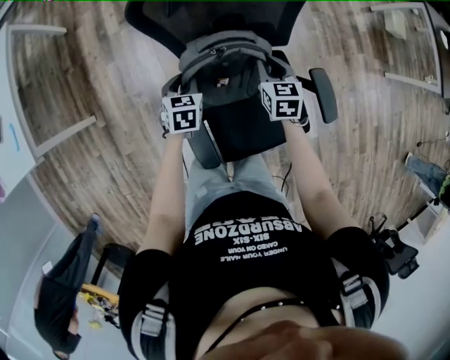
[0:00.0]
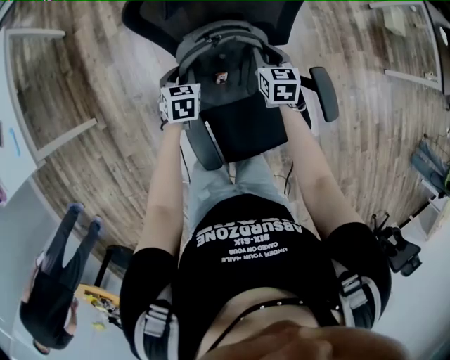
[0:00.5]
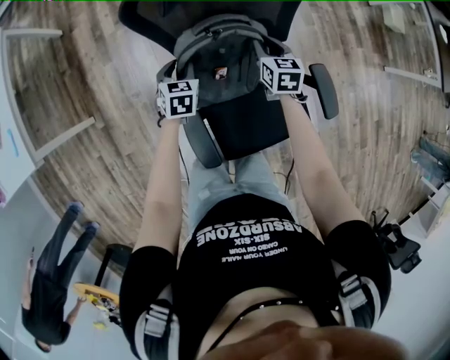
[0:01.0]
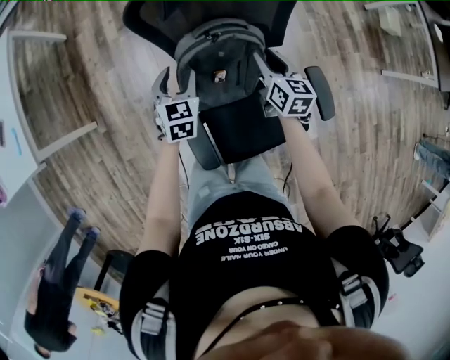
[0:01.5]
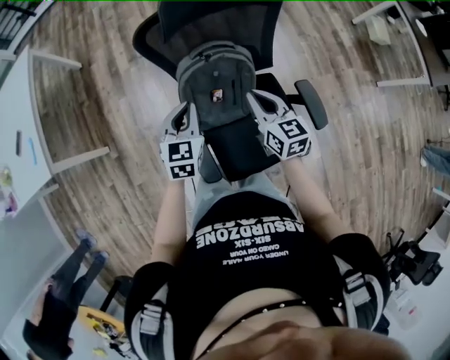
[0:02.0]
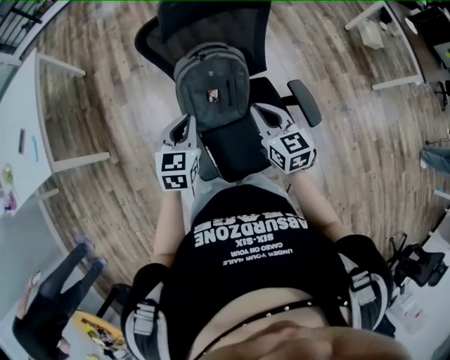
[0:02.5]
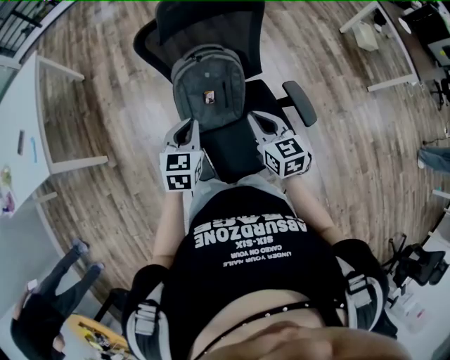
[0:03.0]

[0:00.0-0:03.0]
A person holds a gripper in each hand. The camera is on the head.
0:00.0 to 0:01.5: The right gripper turns by approximately 20 degrees, and opens, while the left gripper travels upward by some 5 cm, and opens up.
0:01.5 to 0:03.0: The two grippers go roughly 25 cm backward and upward. The right gripper closes its fingers. The left gripper closes its fingers.

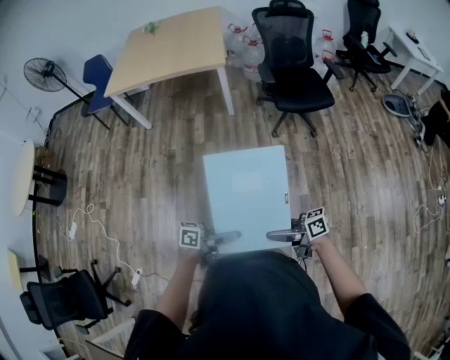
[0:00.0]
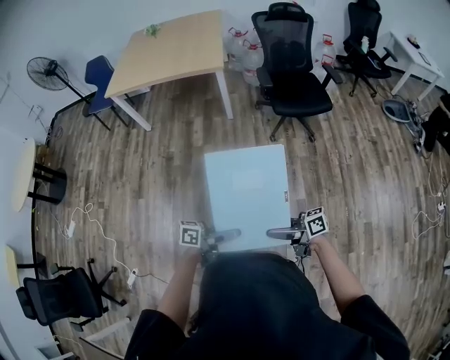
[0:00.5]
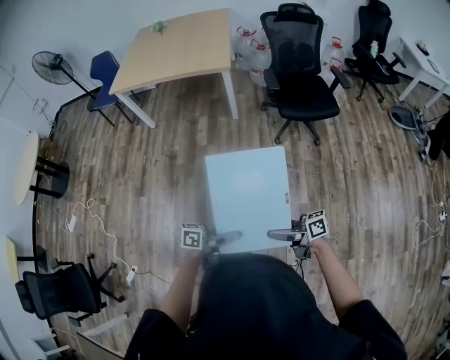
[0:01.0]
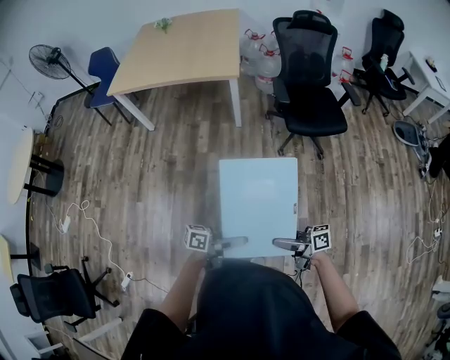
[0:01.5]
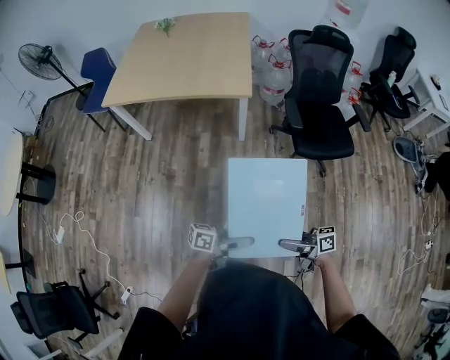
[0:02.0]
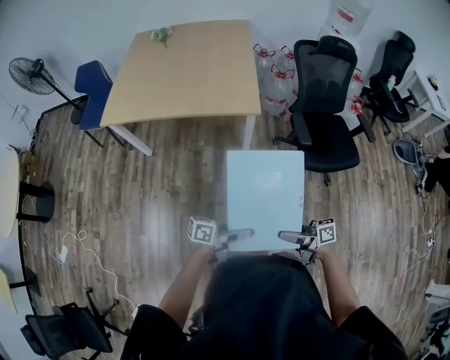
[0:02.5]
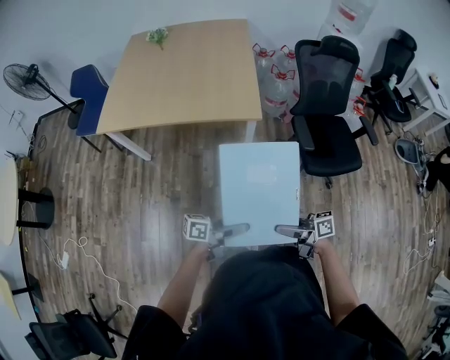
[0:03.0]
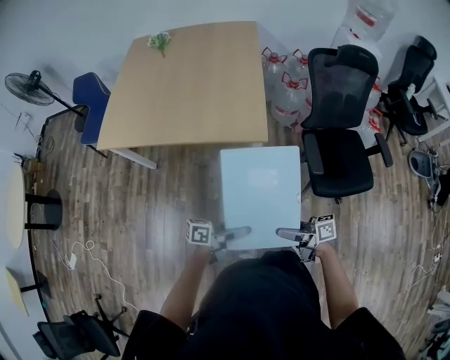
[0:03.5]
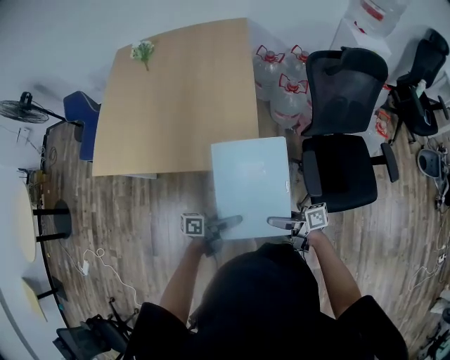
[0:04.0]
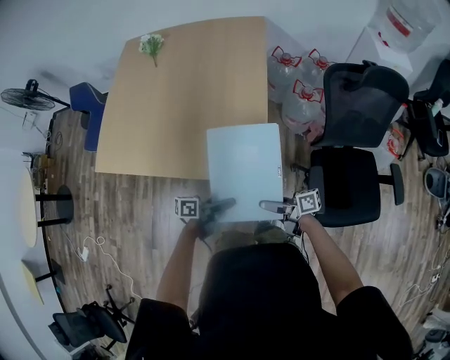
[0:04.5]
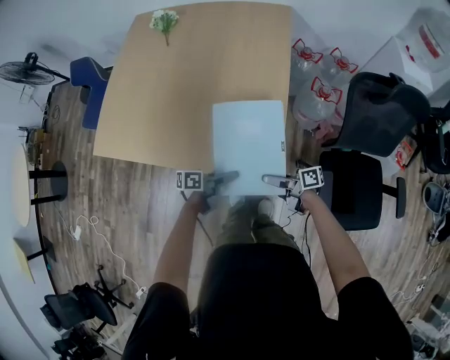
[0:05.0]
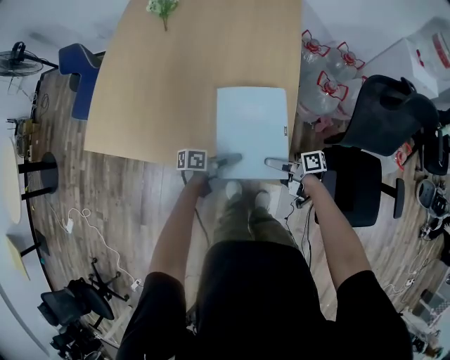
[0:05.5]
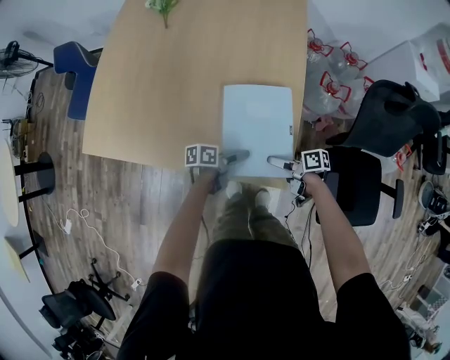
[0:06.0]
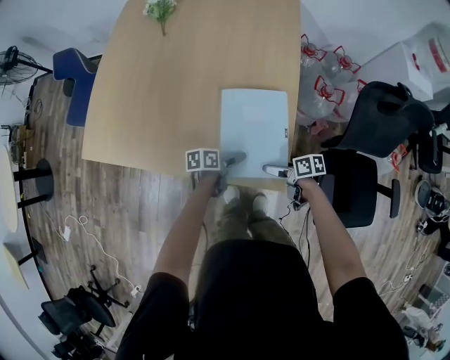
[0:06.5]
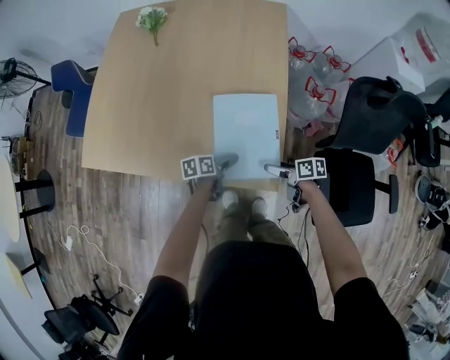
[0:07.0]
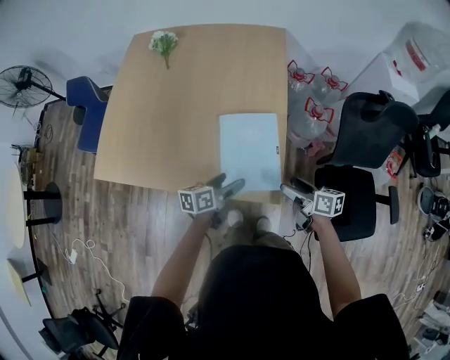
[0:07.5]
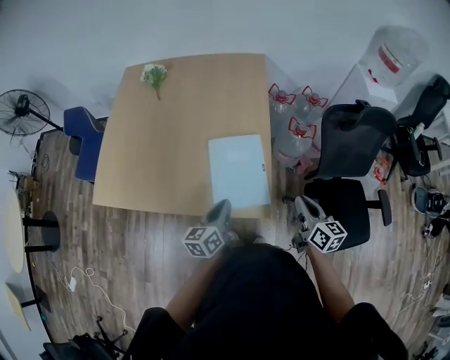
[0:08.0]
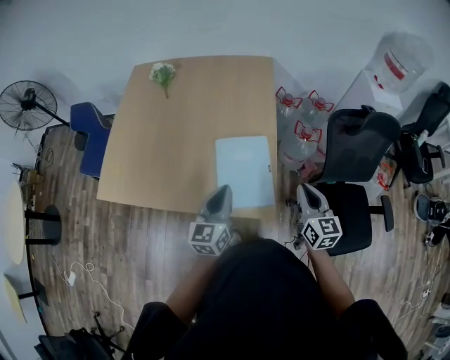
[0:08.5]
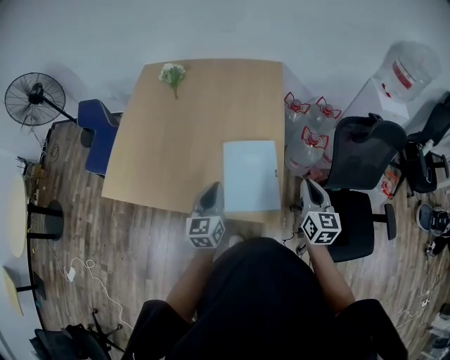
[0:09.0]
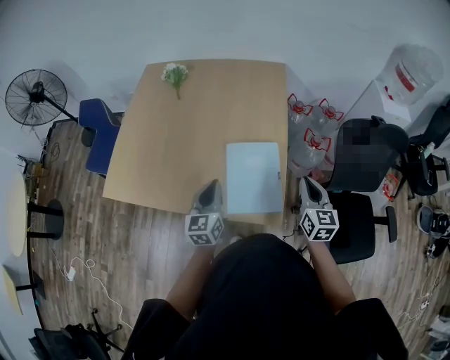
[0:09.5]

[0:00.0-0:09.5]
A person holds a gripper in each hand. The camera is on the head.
0:00.0 to 0:02.0: The right gripper ends up roughly 35 cm from where it was, while the left gripper moves roughly 35 cm.
0:02.0 to 0:04.0: Both grippers are carried roughly 60 cm.
0:04.0 to 0:05.5: The left gripper shifts by approximately 35 cm; the right gripper shifts by approximately 40 cm.
0:05.5 to 0:07.5: The two grippers go roughly 15 cm upward. The left gripper turns by some 30 degrees. The right gripper rotates some 30 degrees.
0:07.5 to 0:09.5: The left gripper heads upward and to the left, covering roughly 15 cm, rotates about 50 degrees, and closes; the right gripper moves upward, some 15 cm, changes its angle by approximately 50 degrees, and closes its fingers.

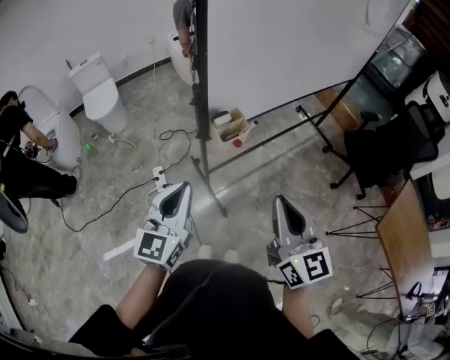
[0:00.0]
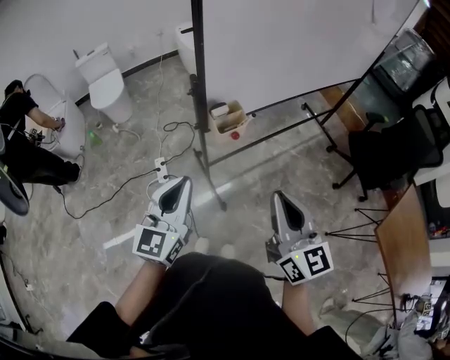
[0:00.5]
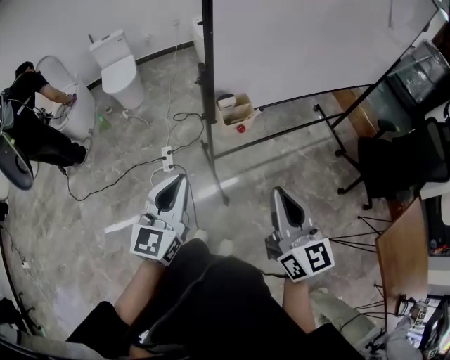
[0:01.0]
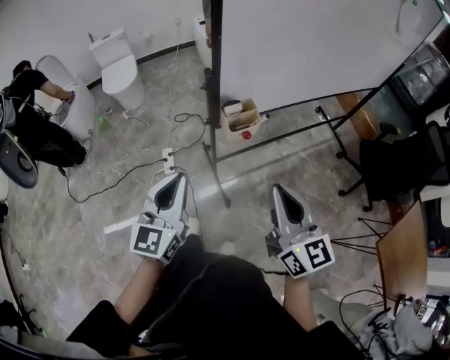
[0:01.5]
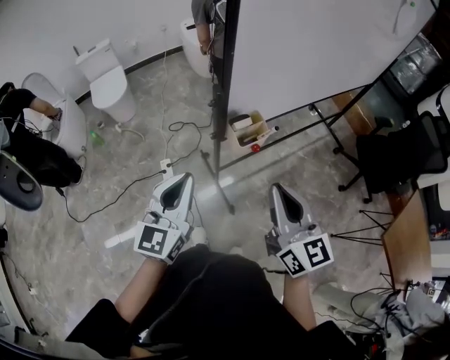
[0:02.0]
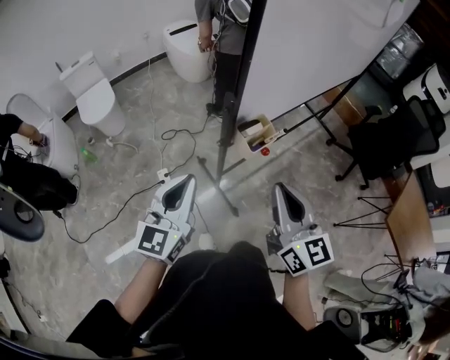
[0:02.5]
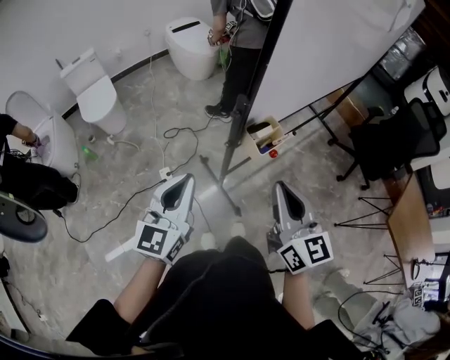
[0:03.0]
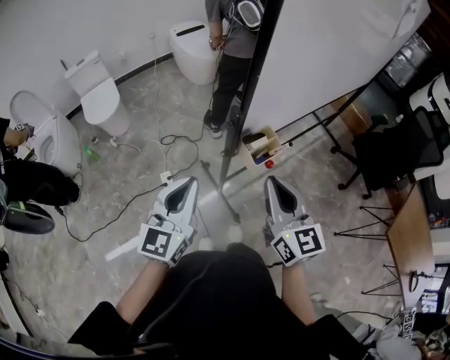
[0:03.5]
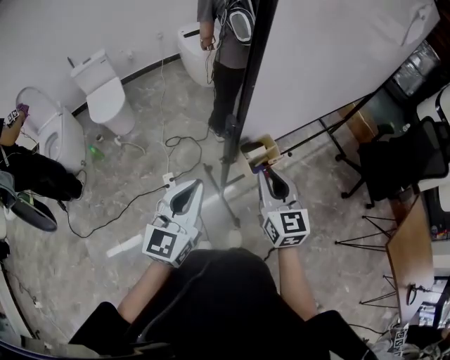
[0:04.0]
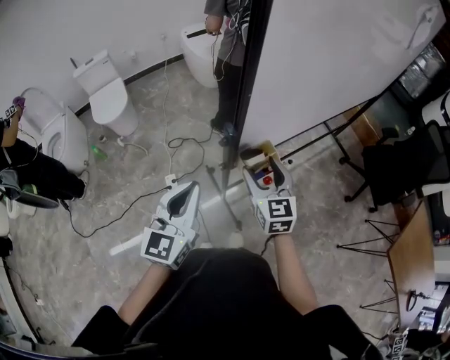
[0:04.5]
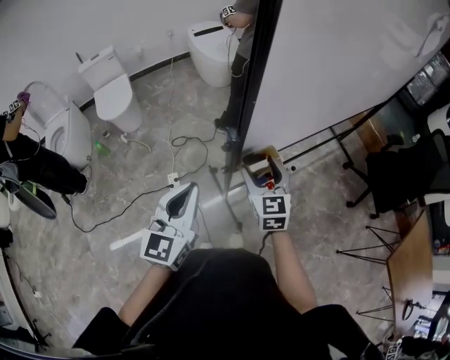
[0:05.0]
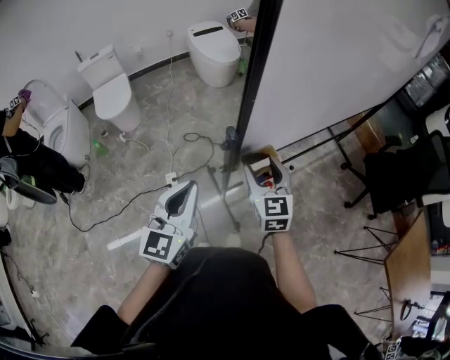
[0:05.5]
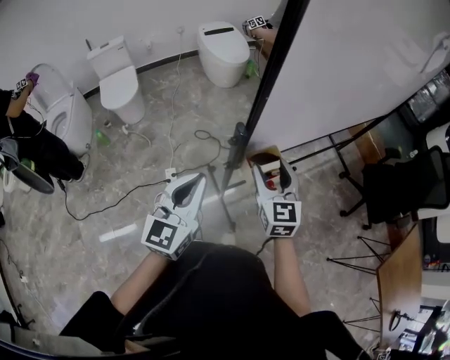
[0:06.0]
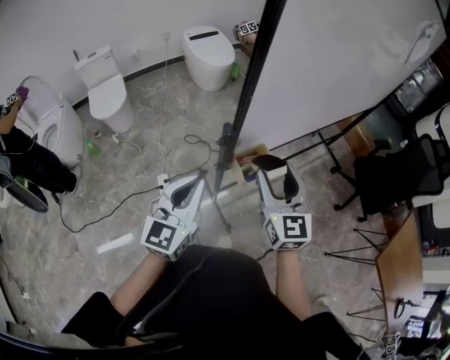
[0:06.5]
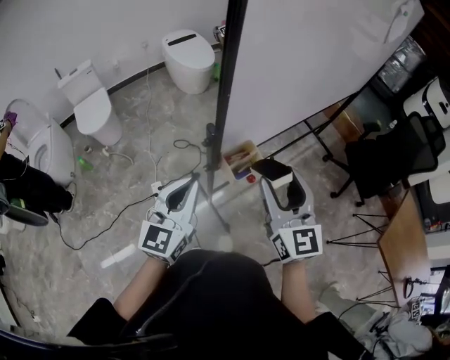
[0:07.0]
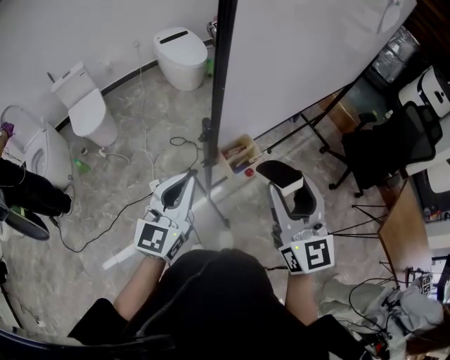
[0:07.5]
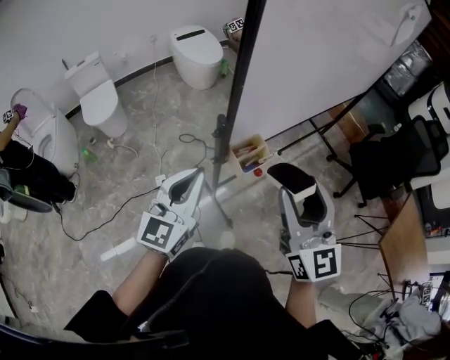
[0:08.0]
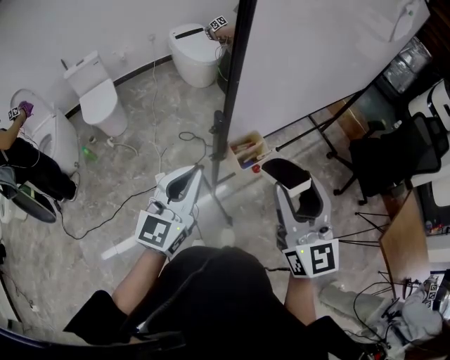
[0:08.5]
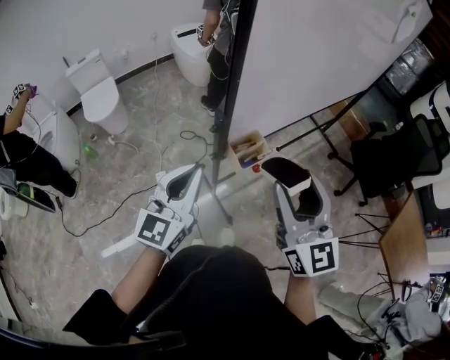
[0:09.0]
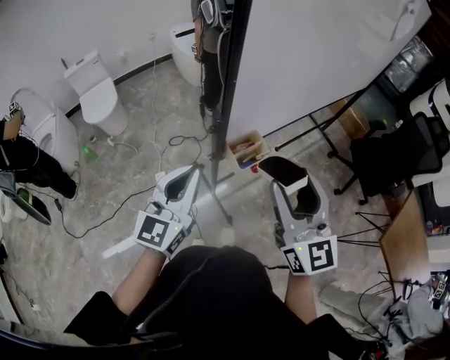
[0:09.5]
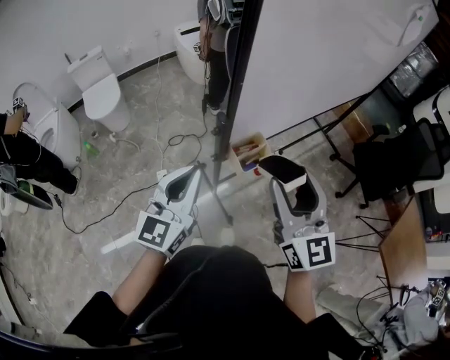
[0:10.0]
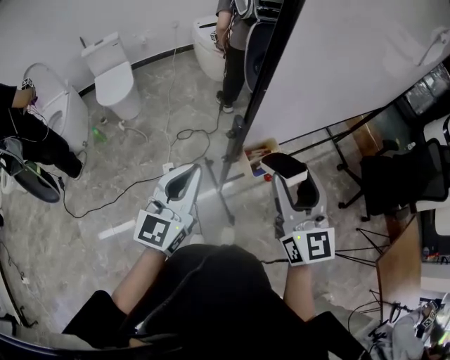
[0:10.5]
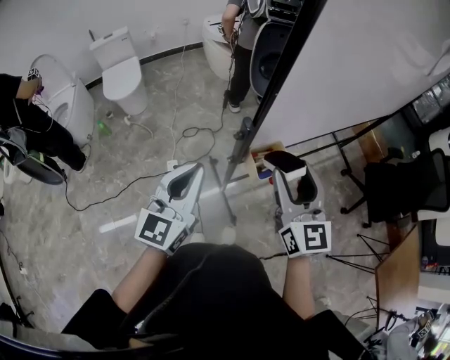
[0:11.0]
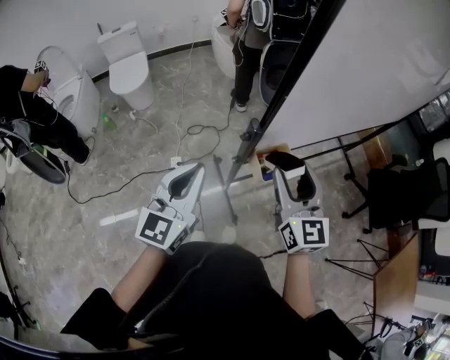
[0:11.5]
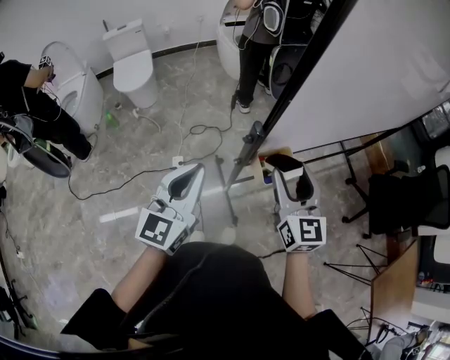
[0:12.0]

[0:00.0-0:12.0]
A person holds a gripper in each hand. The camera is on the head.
0:00.0 to 0:02.0: The right gripper goes roughly 10 cm forward and to the left. The left gripper moves forward, approximately 5 cm.
0:02.0 to 0:04.0: The right gripper is displaced forward, downward and to the left by about 15 cm. The left gripper moves forward, approximately 10 cm, and goes to the left and returns, about 10 cm each way.
0:04.0 to 0:06.0: The right gripper is displaced forward by roughly 5 cm, and opens.
0:06.0 to 0:08.0: The right gripper goes about 20 cm upward, backward and to the right.
0:08.0 to 0:10.0: The grippers move only a little.
0:10.0 to 0:12.0: The right gripper is displaced forward and downward by approximately 15 cm, while the left gripper is displaced to the left by some 5 cm.

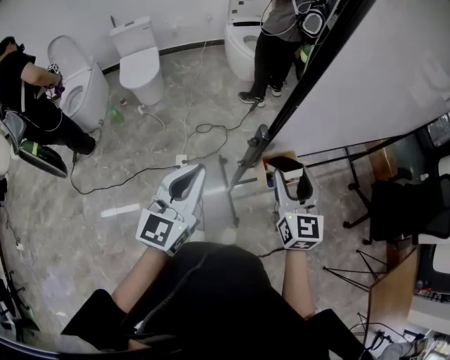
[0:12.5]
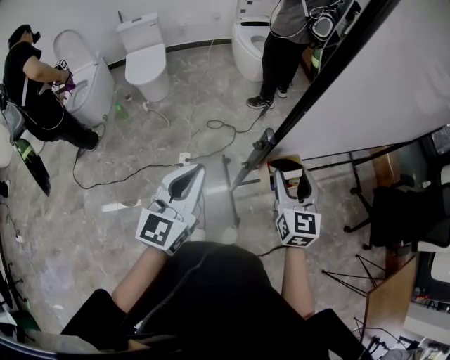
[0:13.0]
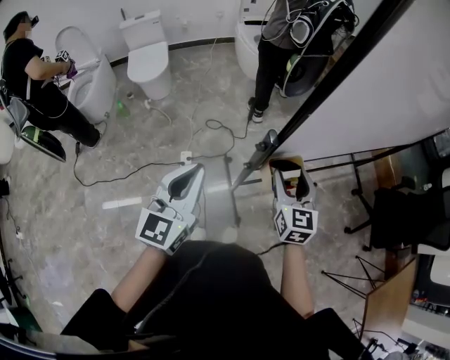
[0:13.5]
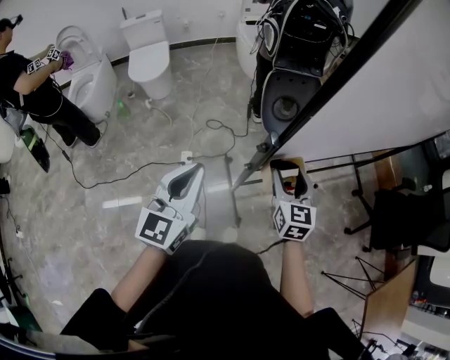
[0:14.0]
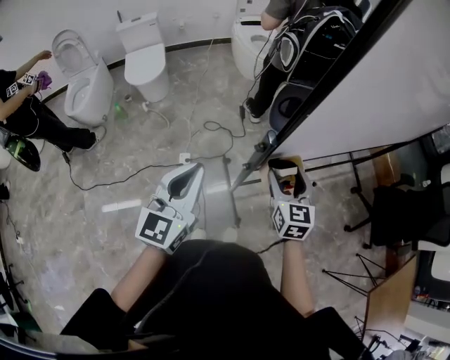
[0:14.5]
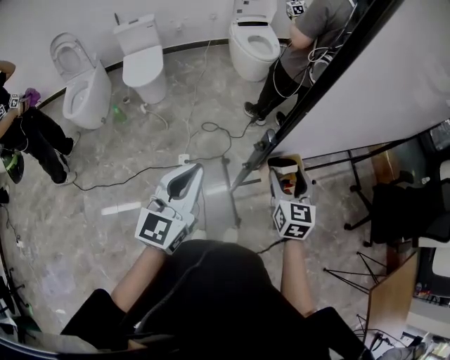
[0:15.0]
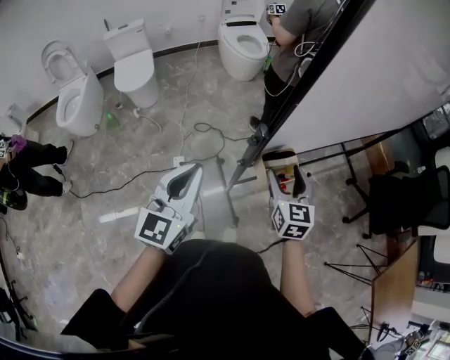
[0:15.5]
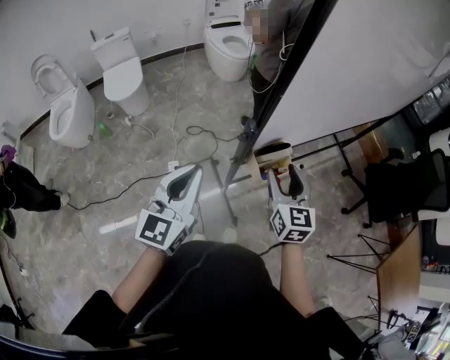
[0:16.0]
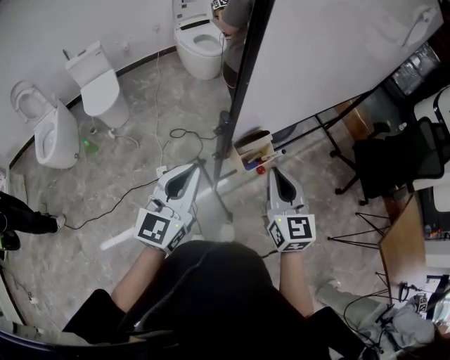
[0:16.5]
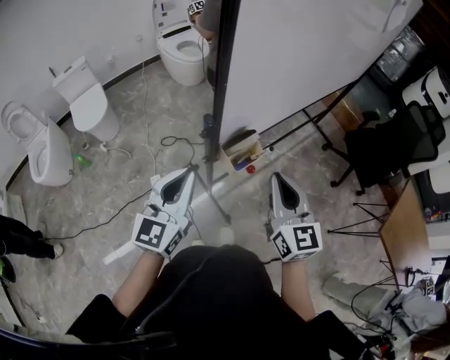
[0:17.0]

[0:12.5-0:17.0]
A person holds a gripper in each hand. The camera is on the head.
0:12.5 to 0:14.5: The right gripper travels downward by some 5 cm.
0:14.5 to 0:17.0: The left gripper goes some 10 cm to the right, and changes its angle by approximately 20 degrees, while the right gripper is displaced backward, upward and to the right by approximately 20 cm, and closes.
